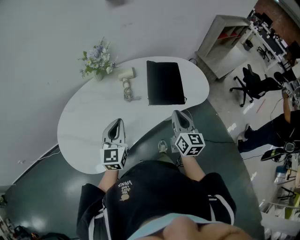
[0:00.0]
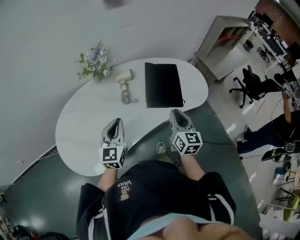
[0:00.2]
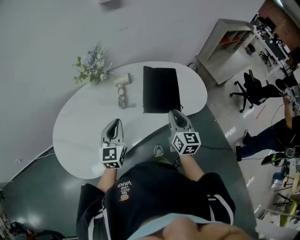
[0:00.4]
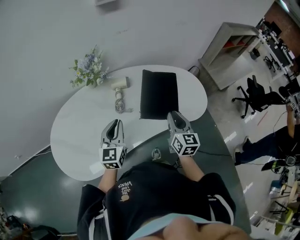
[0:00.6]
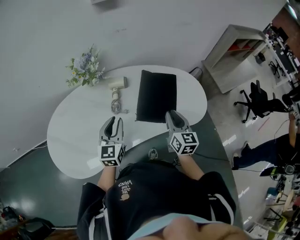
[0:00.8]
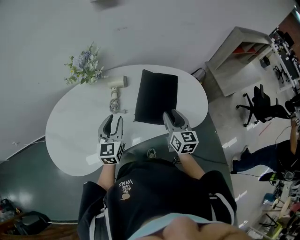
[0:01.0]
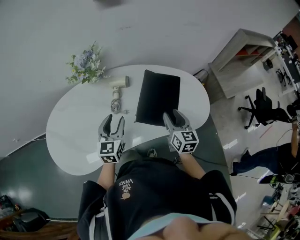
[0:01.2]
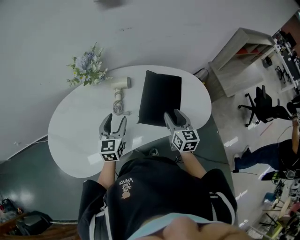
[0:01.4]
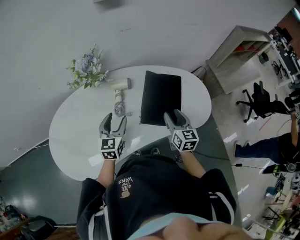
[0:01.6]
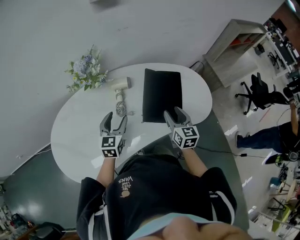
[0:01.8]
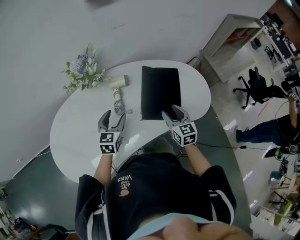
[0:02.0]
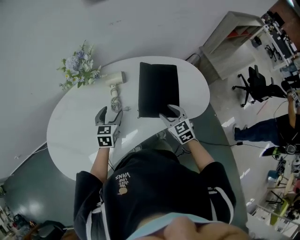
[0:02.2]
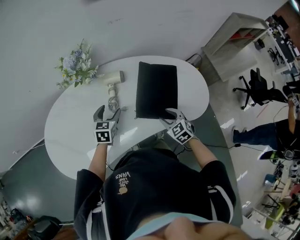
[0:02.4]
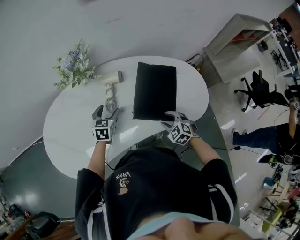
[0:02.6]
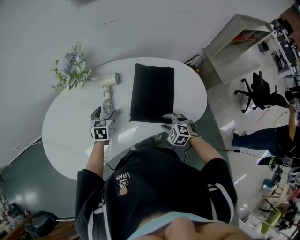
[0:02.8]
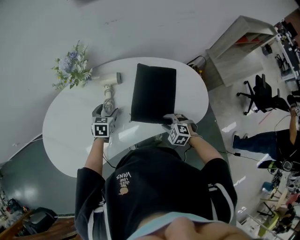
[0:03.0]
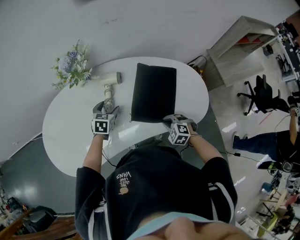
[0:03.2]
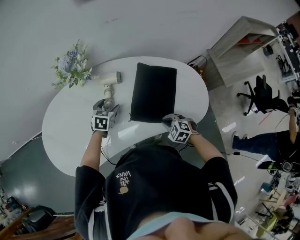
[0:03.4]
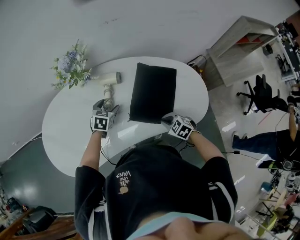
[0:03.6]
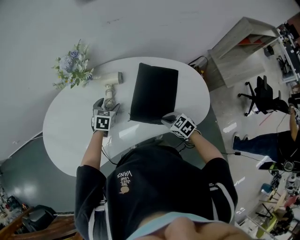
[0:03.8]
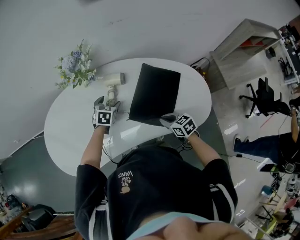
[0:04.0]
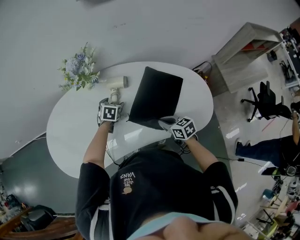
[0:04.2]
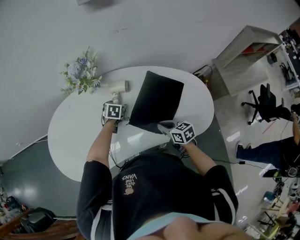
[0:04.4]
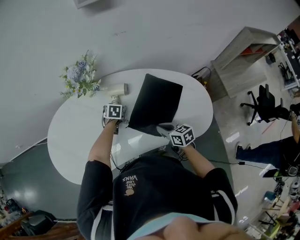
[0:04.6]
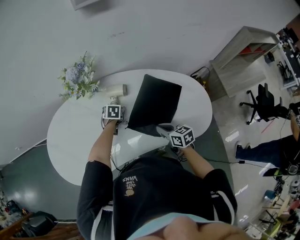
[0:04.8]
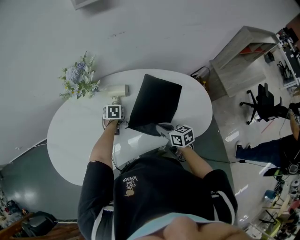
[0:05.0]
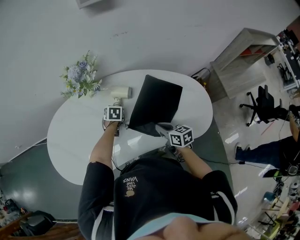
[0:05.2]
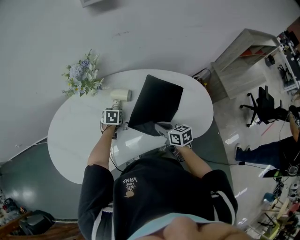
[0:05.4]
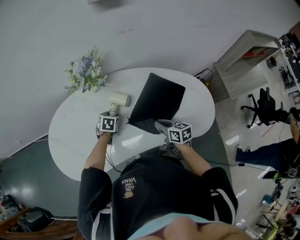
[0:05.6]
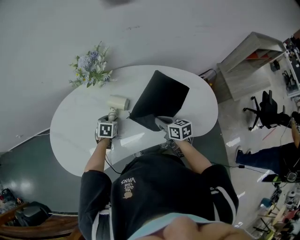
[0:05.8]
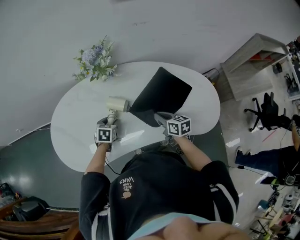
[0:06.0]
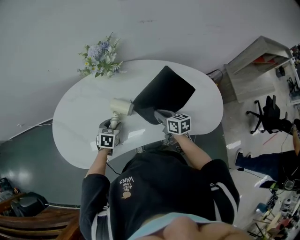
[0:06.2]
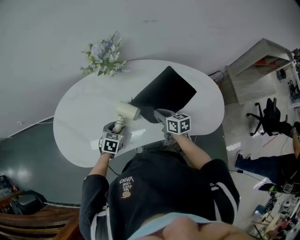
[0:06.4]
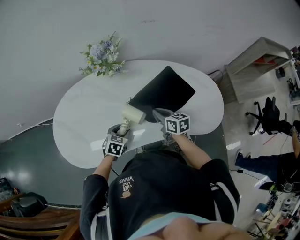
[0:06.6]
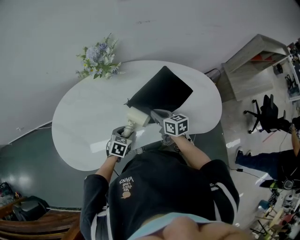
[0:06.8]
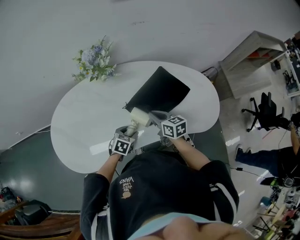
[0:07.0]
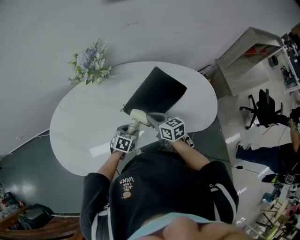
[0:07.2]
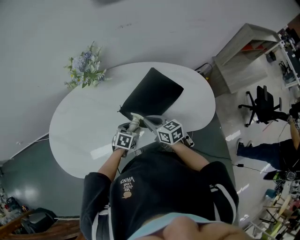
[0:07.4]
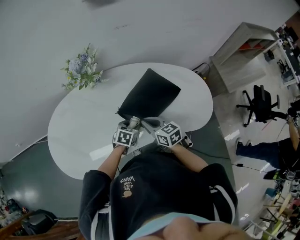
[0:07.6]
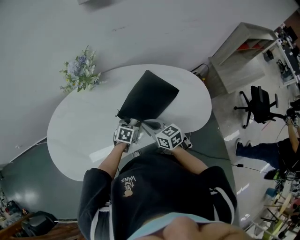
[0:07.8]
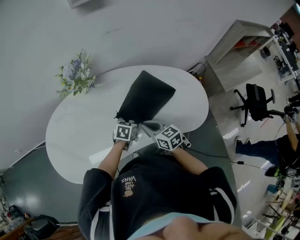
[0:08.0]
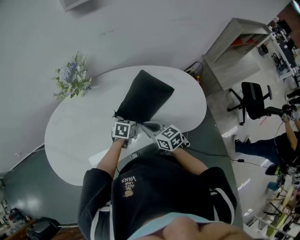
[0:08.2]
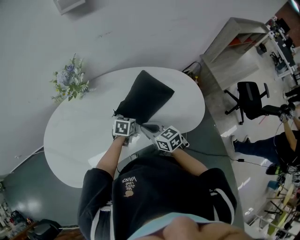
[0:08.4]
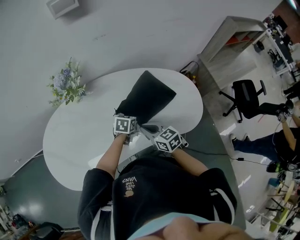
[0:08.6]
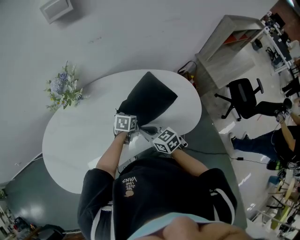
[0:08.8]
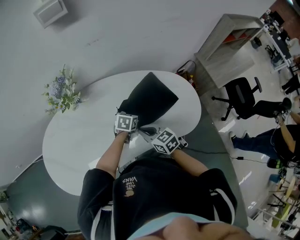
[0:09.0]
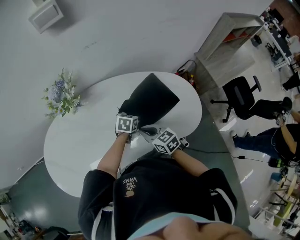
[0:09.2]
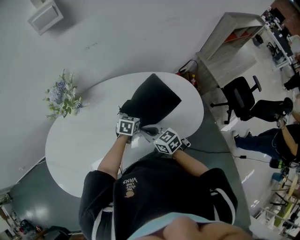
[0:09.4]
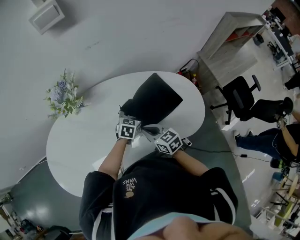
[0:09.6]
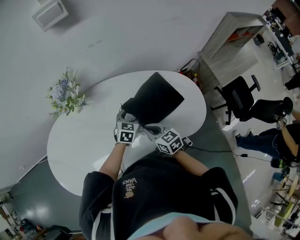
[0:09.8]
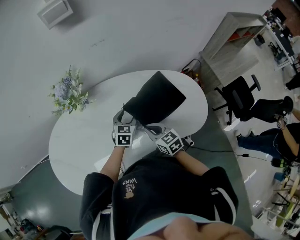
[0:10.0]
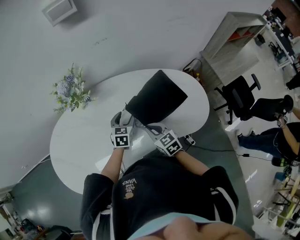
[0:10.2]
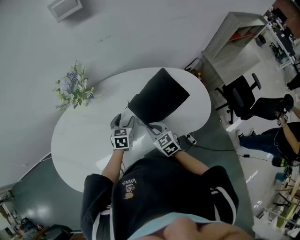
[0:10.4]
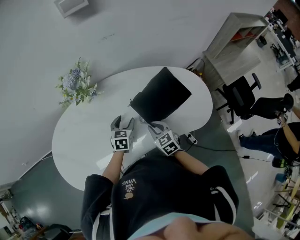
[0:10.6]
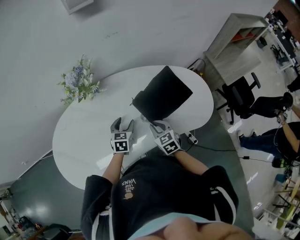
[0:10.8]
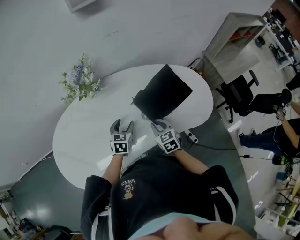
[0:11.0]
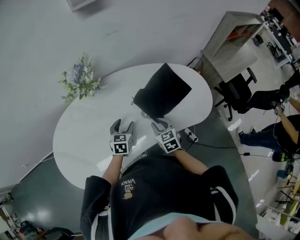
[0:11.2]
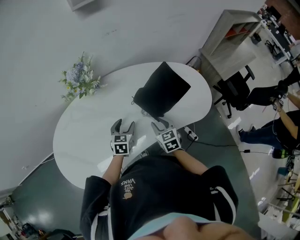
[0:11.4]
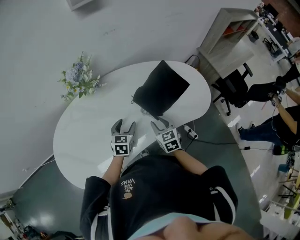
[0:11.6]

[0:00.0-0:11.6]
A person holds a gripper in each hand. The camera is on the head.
0:00.0 to 0:01.4: The left gripper moves forward, to the right and downward, about 20 cm, and opens. Meanwhile the right gripper moves forward and to the right, some 20 cm, and opens up.
0:01.4 to 0:02.8: The left gripper travels downward and forward by some 15 cm, and rotates some 30 degrees. The right gripper travels downward by about 15 cm, and tilts its fingers some 40 degrees downward.
0:02.8 to 0:04.4: Both grippers travel together forward, approximately 5 cm. The right gripper twists some 50 degrees clockwise, seen from behind, and closes its fingers.
0:04.4 to 0:05.8: The left gripper is displaced to the left and backward by roughly 15 cm, and closes its fingers.
0:05.8 to 0:07.2: The right gripper goes roughly 5 cm to the left. Meanwhile the left gripper goes about 15 cm backward and to the right.
0:07.2 to 0:08.8: The left gripper is displaced to the right and forward by about 20 cm. Meanwhile the right gripper is displaced to the right by approximately 5 cm.
0:08.8 to 0:10.2: The left gripper moves to the left, about 10 cm, and turns by about 20 degrees.
0:10.2 to 0:11.6: The right gripper shifts by roughly 5 cm, and opens; the left gripper moves backward and to the left, roughly 15 cm.

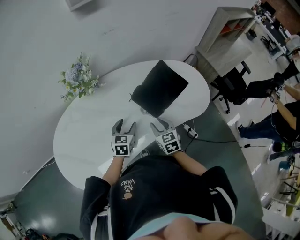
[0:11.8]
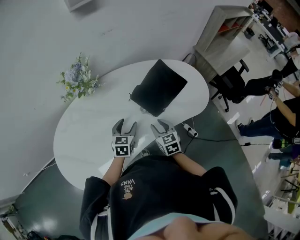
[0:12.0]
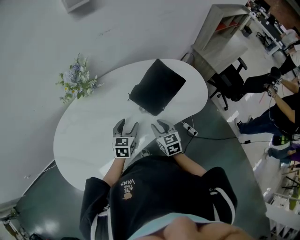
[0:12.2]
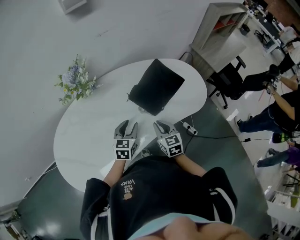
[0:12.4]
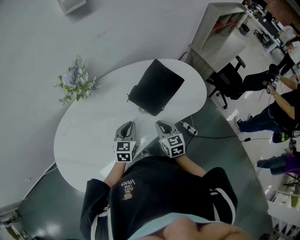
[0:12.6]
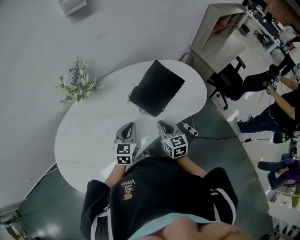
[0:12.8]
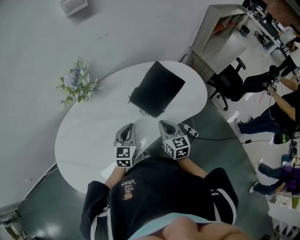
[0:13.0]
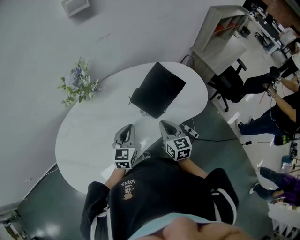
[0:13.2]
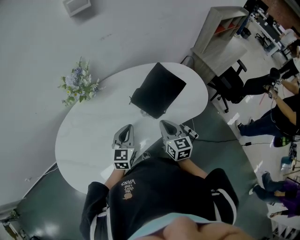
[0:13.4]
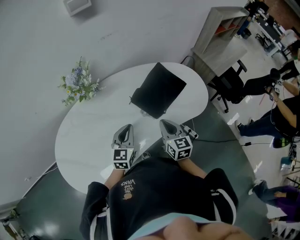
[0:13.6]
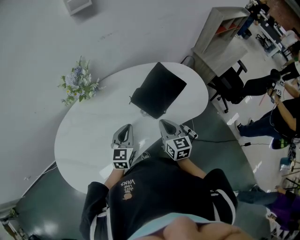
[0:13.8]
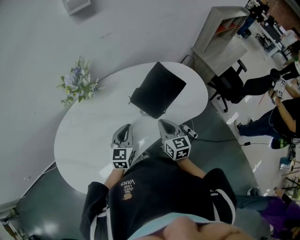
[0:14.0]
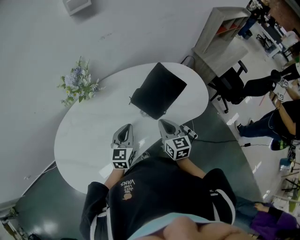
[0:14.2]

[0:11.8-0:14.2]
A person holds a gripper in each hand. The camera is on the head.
0:11.8 to 0:13.0: Both grippers move upward, about 5 cm. The left gripper closes up. The right gripper closes up.
0:13.0 to 0:14.2: The grippers stay close to where they were, moving slightly.

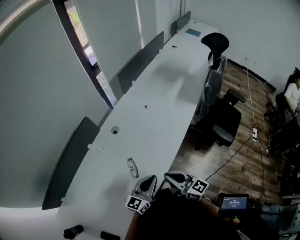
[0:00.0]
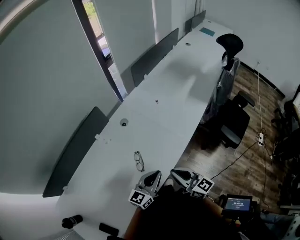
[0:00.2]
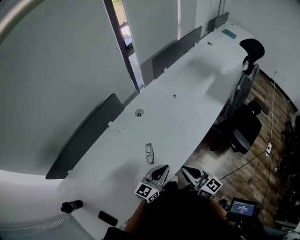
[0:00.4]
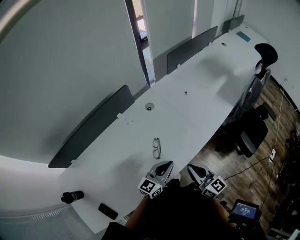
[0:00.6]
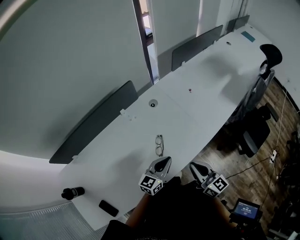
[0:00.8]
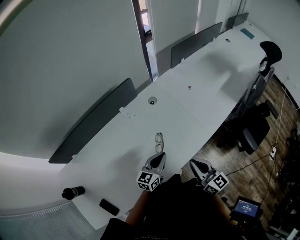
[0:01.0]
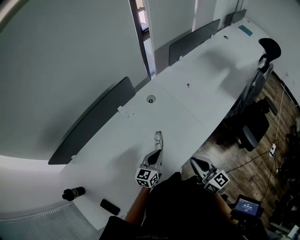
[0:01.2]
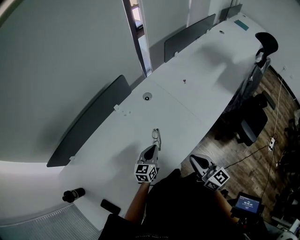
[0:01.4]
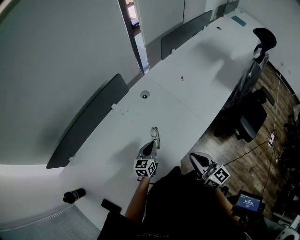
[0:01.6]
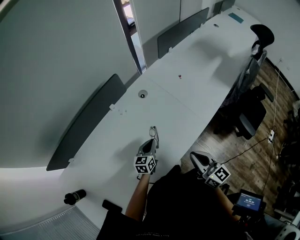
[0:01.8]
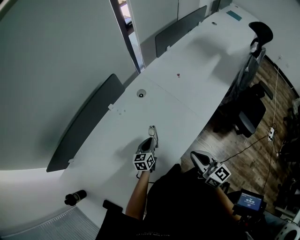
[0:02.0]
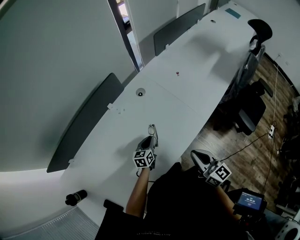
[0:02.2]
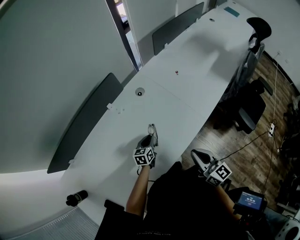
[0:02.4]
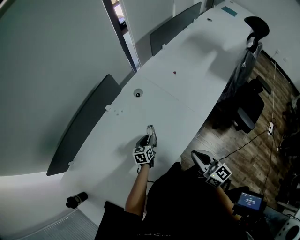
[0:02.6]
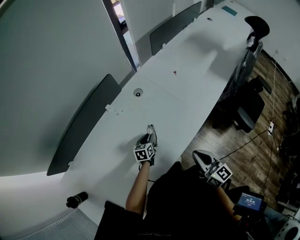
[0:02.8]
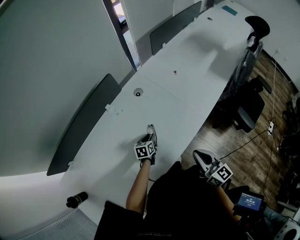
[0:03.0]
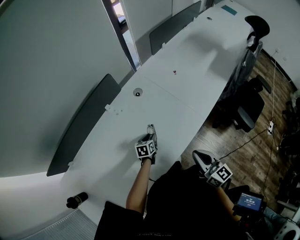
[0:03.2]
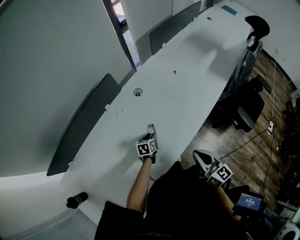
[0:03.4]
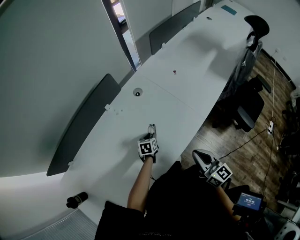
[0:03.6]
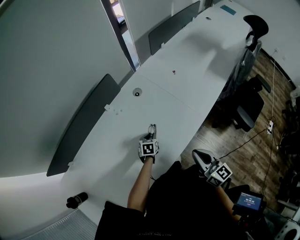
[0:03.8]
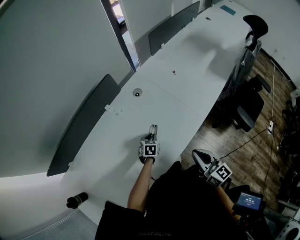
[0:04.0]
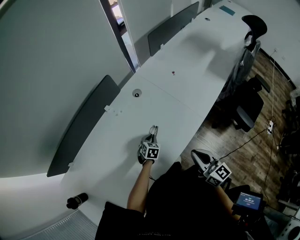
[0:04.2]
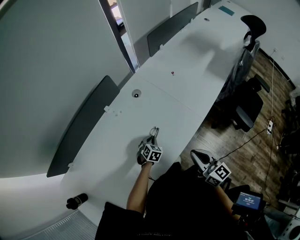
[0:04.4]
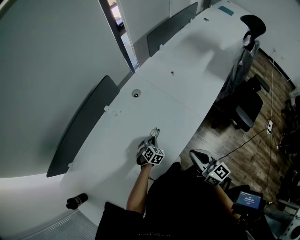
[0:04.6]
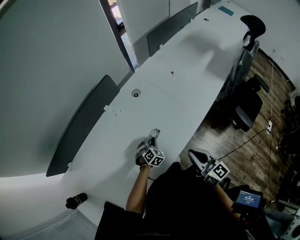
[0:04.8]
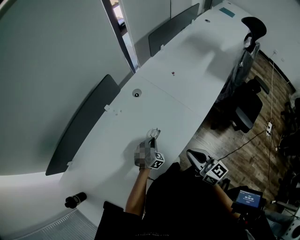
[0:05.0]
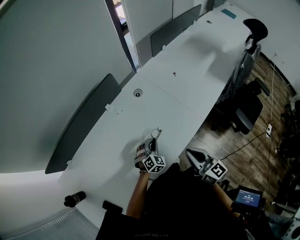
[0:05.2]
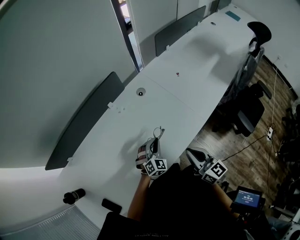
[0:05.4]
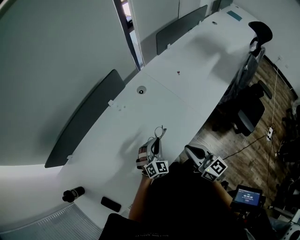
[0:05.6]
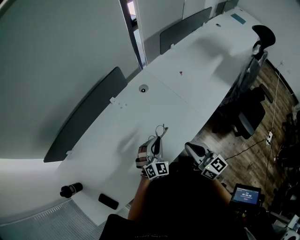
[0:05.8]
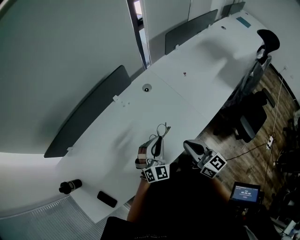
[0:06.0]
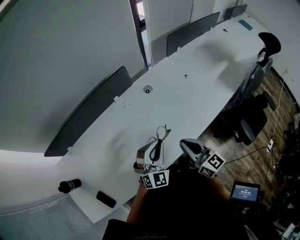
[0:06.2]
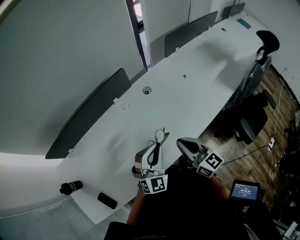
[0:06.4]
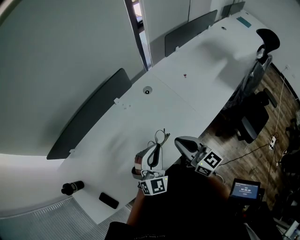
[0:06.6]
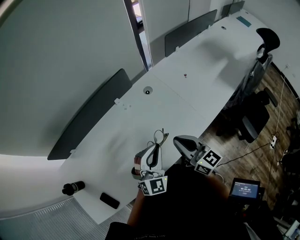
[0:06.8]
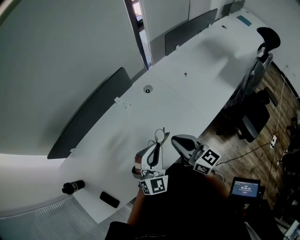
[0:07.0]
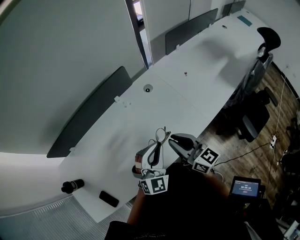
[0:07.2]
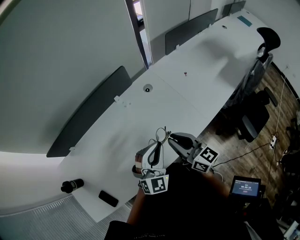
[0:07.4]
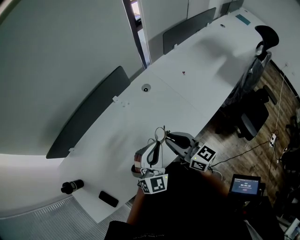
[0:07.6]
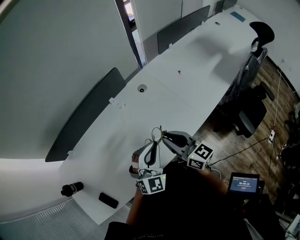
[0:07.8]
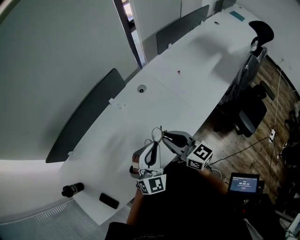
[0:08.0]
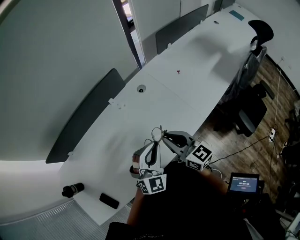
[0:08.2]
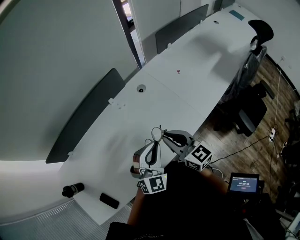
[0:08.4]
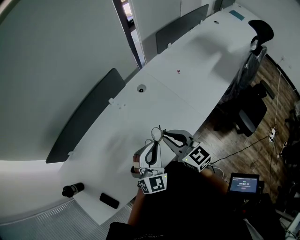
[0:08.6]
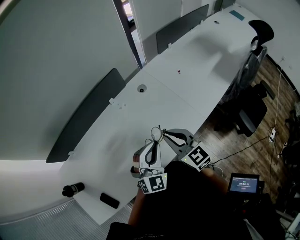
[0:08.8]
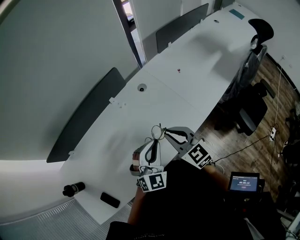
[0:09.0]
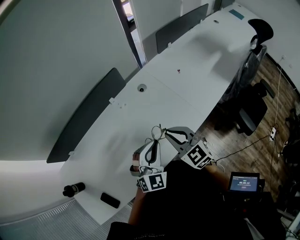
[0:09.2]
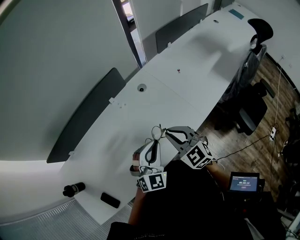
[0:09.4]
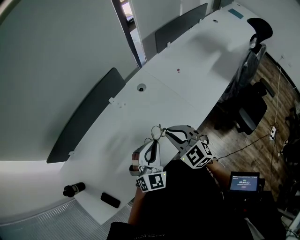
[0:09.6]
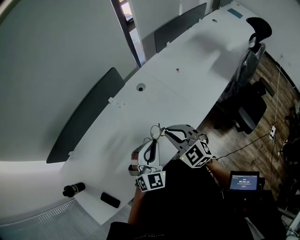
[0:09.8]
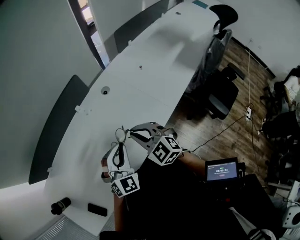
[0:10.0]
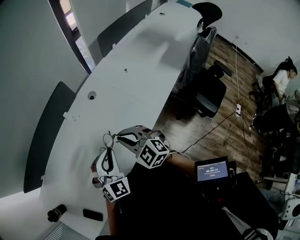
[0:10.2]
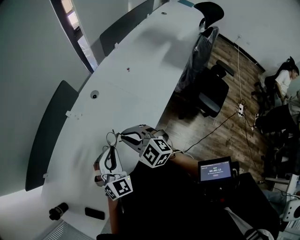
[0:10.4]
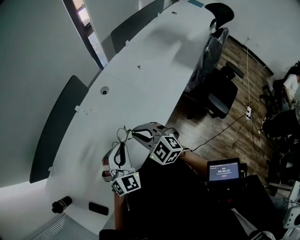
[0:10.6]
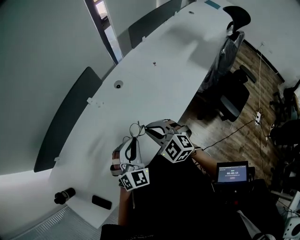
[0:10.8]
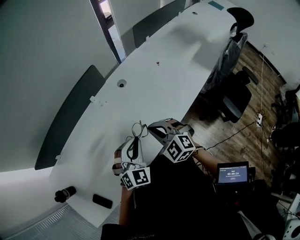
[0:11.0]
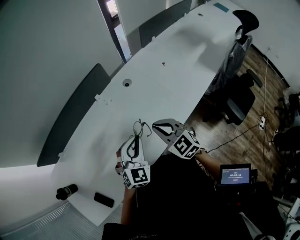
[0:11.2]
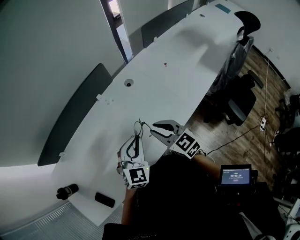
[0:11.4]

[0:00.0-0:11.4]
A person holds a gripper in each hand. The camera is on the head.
0:00.0 to 0:01.4: The left gripper travels to the left, downward and forward by approximately 15 cm, and rotates roughly 30 degrees.
0:01.4 to 0:02.8: The left gripper shifts some 15 cm downward and forward, rotates about 20 degrees, and opens its fingers.
0:02.8 to 0:04.2: The left gripper swivels roughly 30 degrees.
0:04.2 to 0:05.6: The left gripper heads upward, covering roughly 15 cm, and turns by roughly 40 degrees.
0:05.6 to 0:07.2: The right gripper moves to the left and forward, about 10 cm. The left gripper goes approximately 15 cm upward.
0:07.2 to 0:08.6: The grippers stay close to where they were, moving slightly.
0:08.6 to 0:10.0: The right gripper changes its angle by some 30 degrees.
0:10.0 to 0:11.4: The right gripper changes its angle by some 20 degrees.
